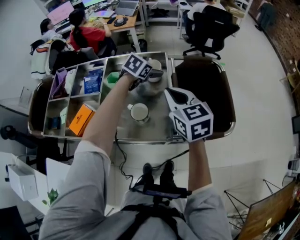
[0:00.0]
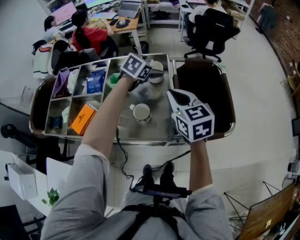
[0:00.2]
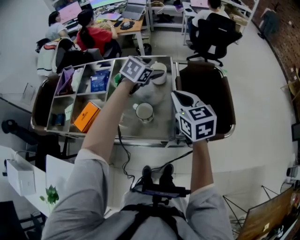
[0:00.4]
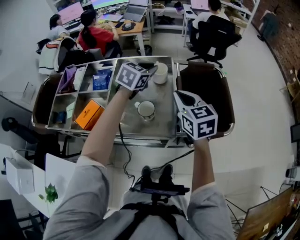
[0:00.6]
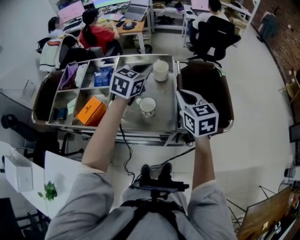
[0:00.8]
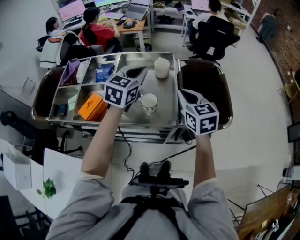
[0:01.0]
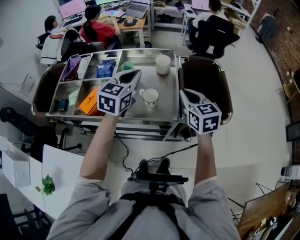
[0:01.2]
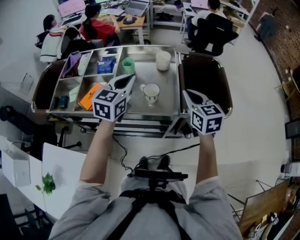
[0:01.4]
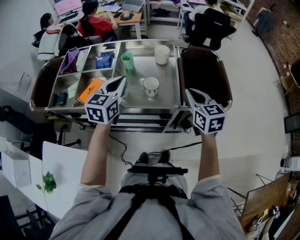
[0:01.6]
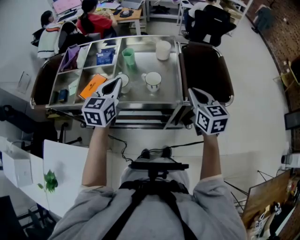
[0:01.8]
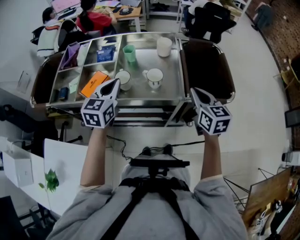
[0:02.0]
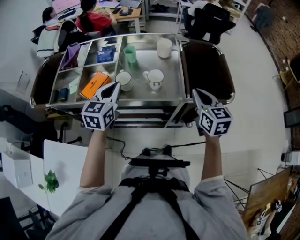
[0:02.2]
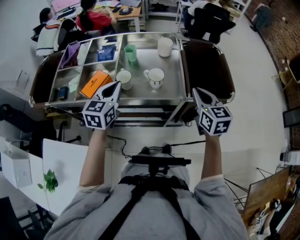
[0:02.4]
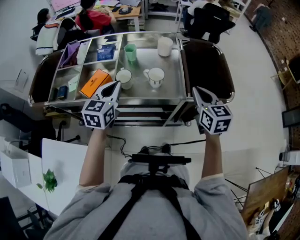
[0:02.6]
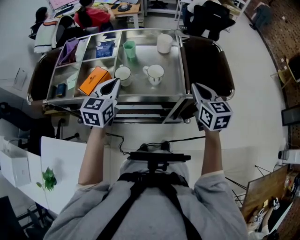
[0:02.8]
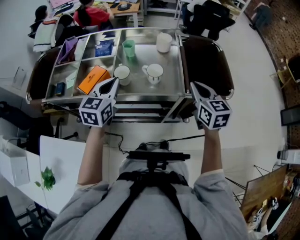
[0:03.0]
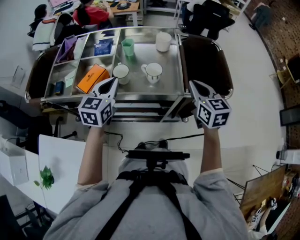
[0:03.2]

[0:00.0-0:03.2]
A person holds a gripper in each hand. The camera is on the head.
0:00.0 to 0:01.6: The left gripper moves backward, to the left and upward, about 35 cm, changes its angle by approximately 40 degrees, and closes up. Meanwhile the right gripper moves backward, some 10 cm.
0:01.6 to 0:03.2: The left gripper ends up roughly 10 cm from where it was.

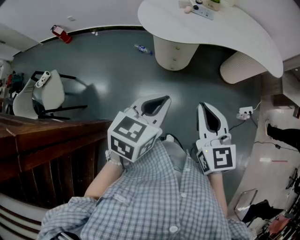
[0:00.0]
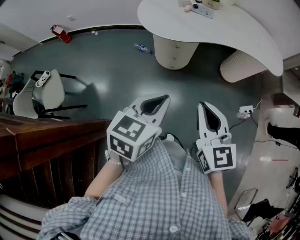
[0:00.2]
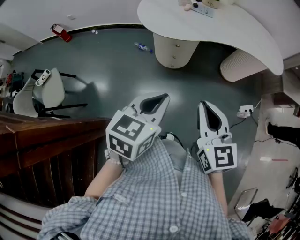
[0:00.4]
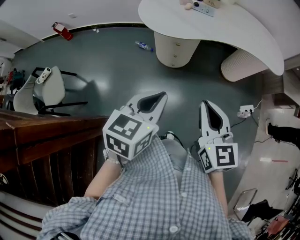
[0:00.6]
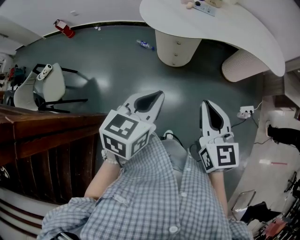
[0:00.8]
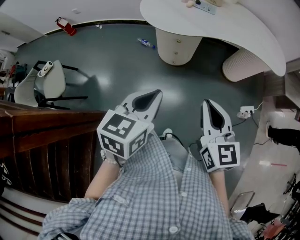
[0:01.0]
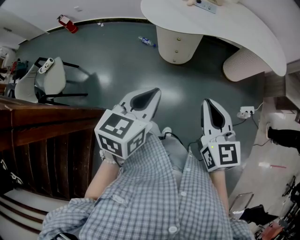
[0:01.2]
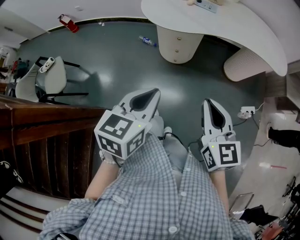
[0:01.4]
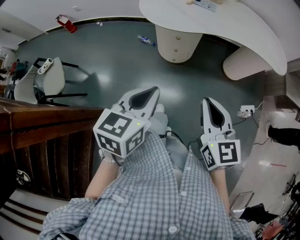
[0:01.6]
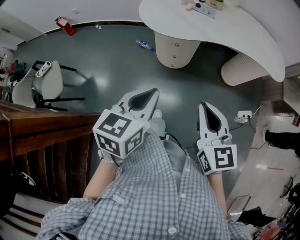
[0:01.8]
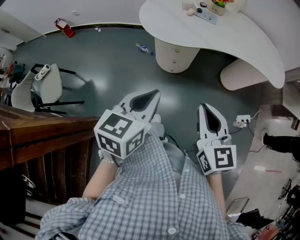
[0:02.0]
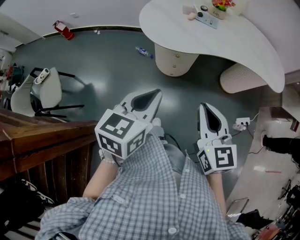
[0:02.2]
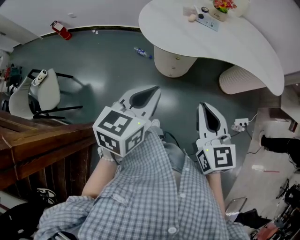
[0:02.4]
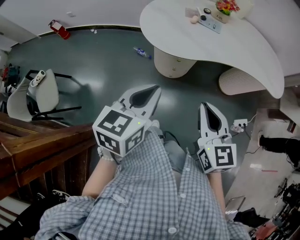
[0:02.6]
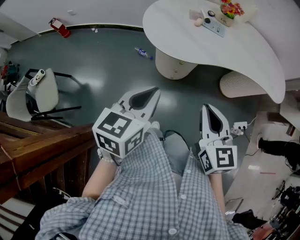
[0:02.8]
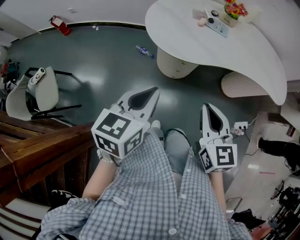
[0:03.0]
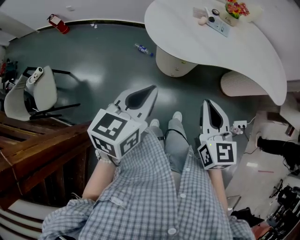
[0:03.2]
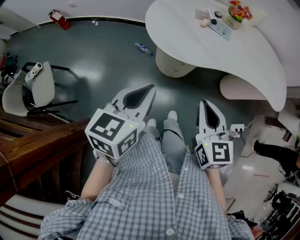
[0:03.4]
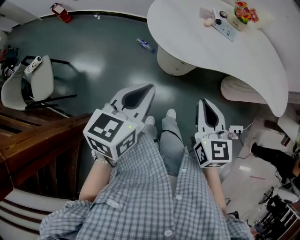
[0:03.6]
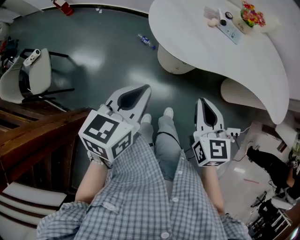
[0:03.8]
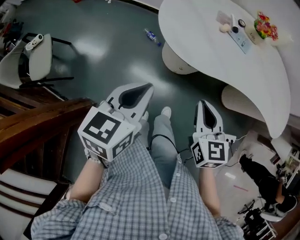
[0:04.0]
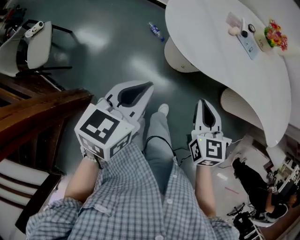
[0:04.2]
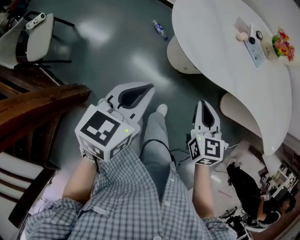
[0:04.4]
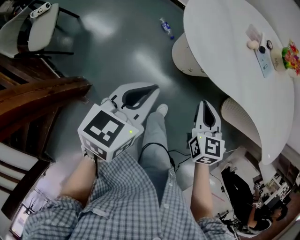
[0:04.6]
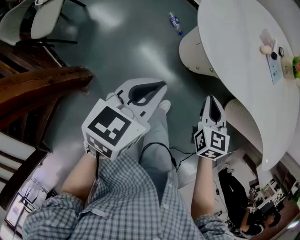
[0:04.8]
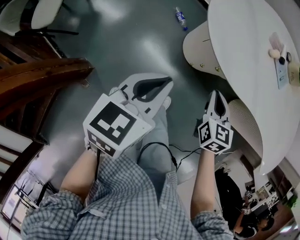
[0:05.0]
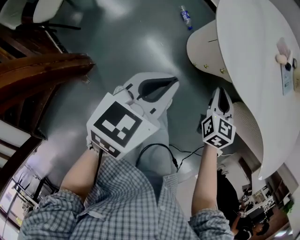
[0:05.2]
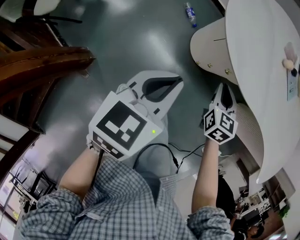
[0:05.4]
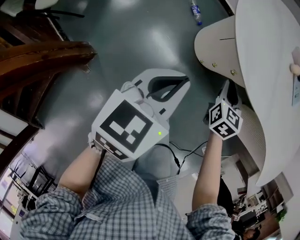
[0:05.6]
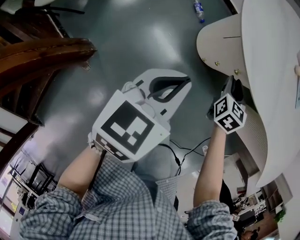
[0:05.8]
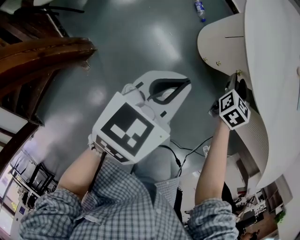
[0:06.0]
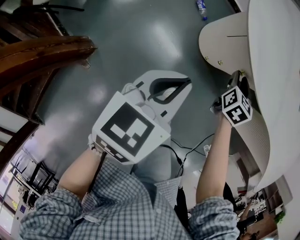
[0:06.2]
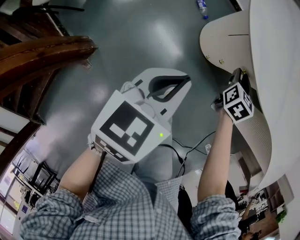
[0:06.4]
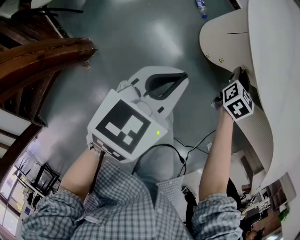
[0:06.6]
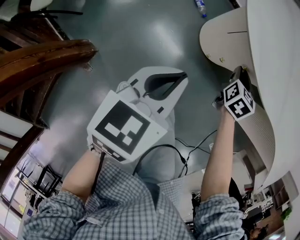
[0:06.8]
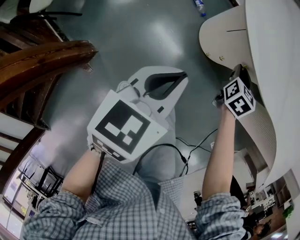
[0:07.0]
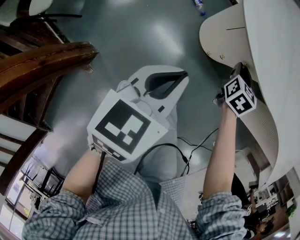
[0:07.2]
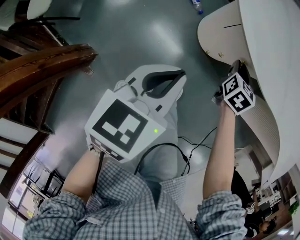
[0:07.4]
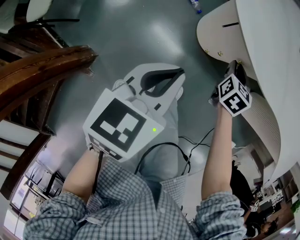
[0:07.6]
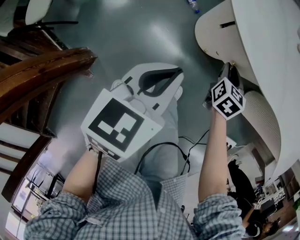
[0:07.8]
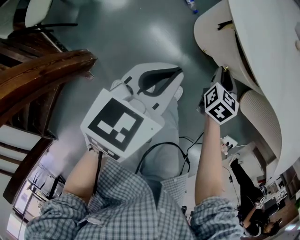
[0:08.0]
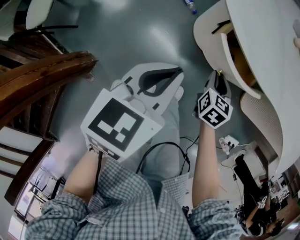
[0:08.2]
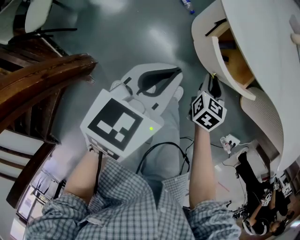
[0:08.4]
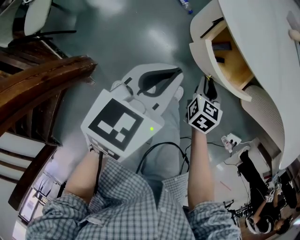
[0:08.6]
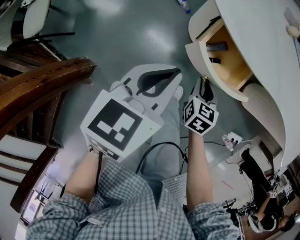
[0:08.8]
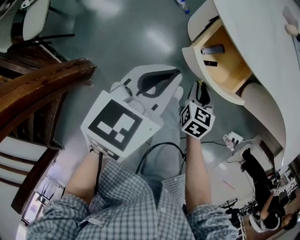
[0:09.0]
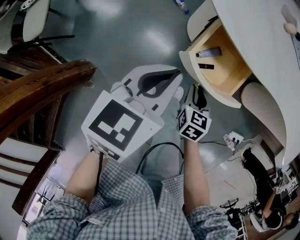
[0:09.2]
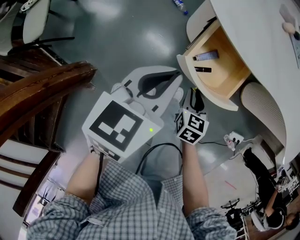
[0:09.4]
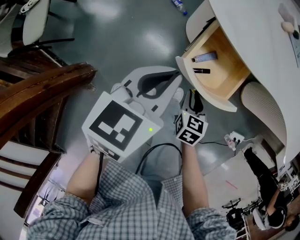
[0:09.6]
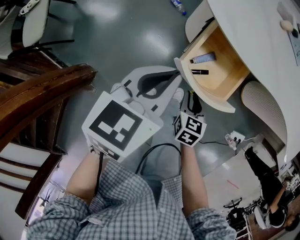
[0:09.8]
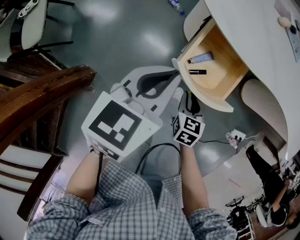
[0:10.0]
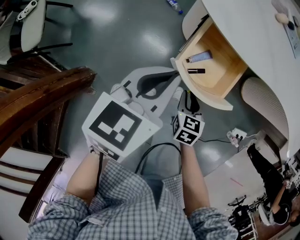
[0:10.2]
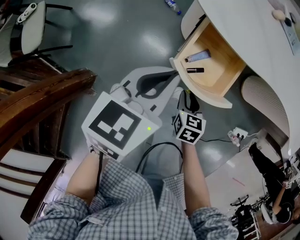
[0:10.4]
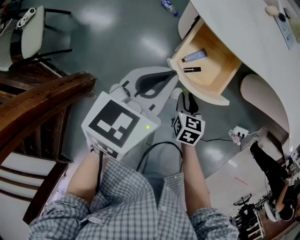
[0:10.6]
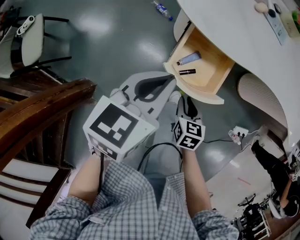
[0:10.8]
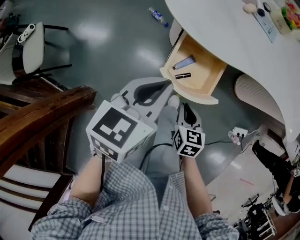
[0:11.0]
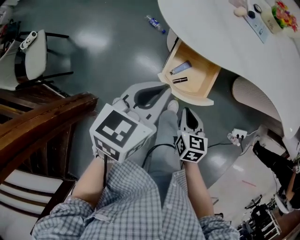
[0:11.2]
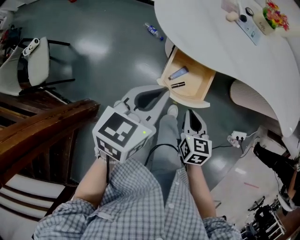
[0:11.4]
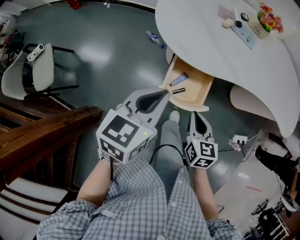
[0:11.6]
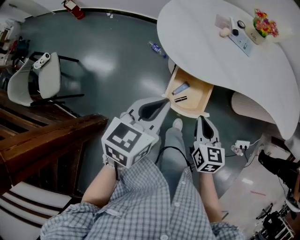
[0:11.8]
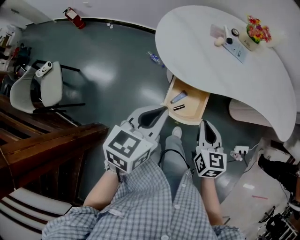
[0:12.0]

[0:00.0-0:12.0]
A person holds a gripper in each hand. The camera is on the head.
0:00.0 to 0:01.6: The right gripper moves to the right, some 5 cm.
0:01.6 to 0:03.0: Both grippers travel together forward and to the left, approximately 20 cm.
0:03.0 to 0:04.4: The left gripper travels downward and forward by some 10 cm; the right gripper goes some 20 cm downward and forward.
0:04.4 to 0:06.0: The left gripper moves downward, about 15 cm; the right gripper goes some 25 cm downward and forward, and opens.
0:06.0 to 0:07.6: The grippers make only small movements.
0:07.6 to 0:09.0: The right gripper shifts roughly 15 cm backward.
0:09.0 to 0:10.4: The right gripper travels backward by roughly 5 cm.
0:10.4 to 0:12.0: The right gripper heads upward, covering roughly 25 cm, and changes its angle by approximately 20 degrees, while the left gripper heads upward, covering some 15 cm.

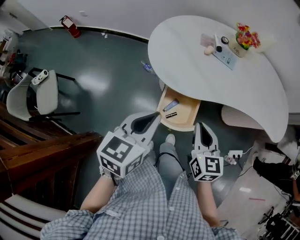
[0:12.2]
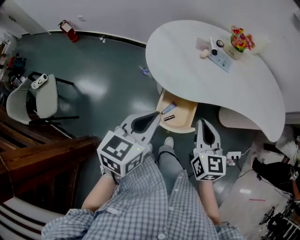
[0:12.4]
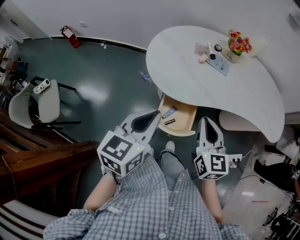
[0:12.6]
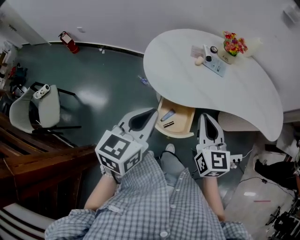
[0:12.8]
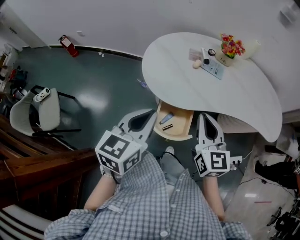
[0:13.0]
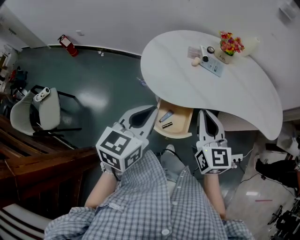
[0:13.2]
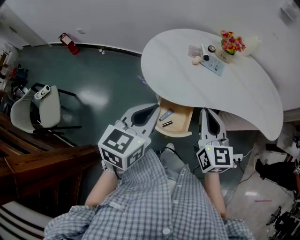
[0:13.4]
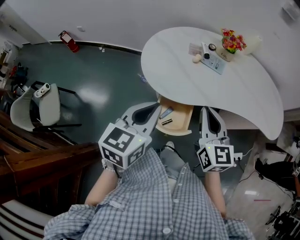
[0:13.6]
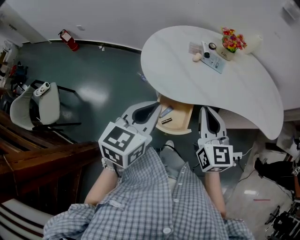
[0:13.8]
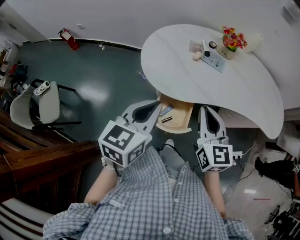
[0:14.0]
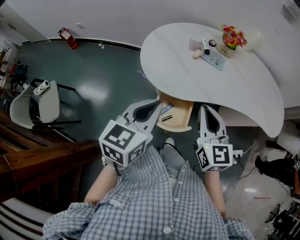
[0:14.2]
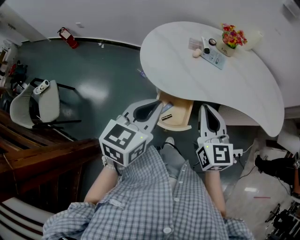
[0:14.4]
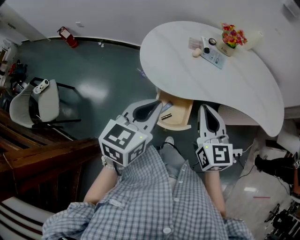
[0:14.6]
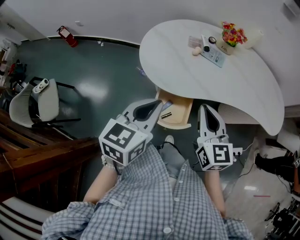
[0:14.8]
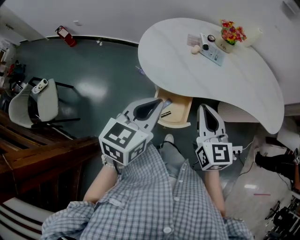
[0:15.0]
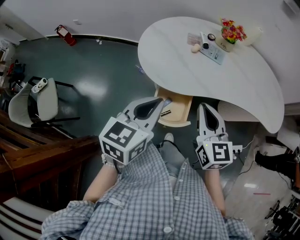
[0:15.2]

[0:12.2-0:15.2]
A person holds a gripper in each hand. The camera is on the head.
0:12.2 to 0:13.8: The right gripper goes roughly 10 cm upward and forward. The left gripper shifts roughly 5 cm upward.
0:13.8 to 0:15.2: The grippers move only a little.

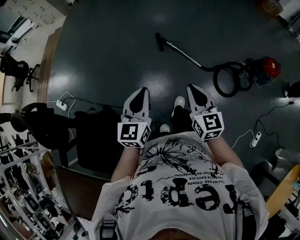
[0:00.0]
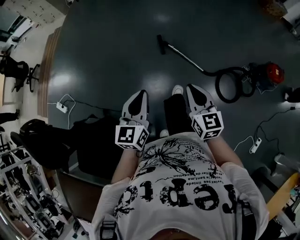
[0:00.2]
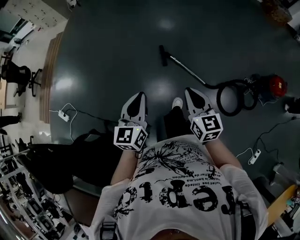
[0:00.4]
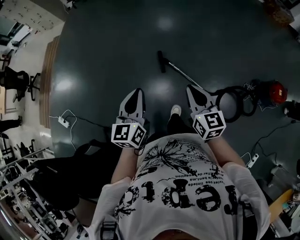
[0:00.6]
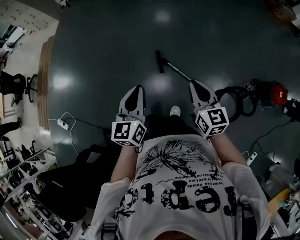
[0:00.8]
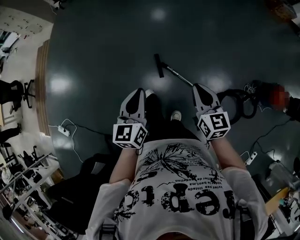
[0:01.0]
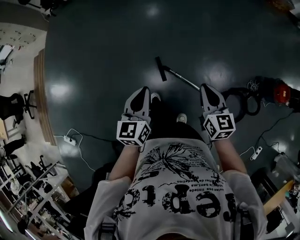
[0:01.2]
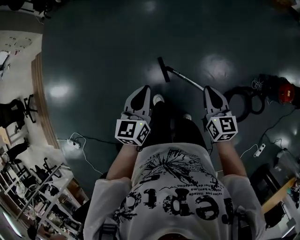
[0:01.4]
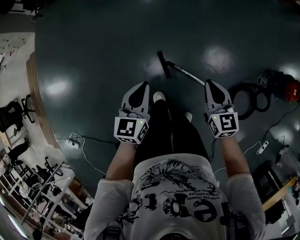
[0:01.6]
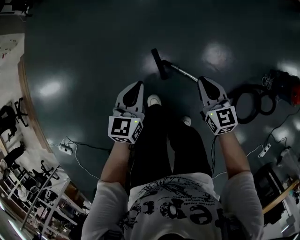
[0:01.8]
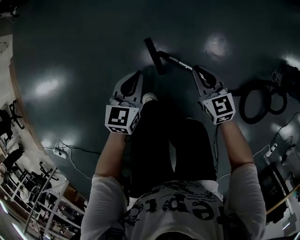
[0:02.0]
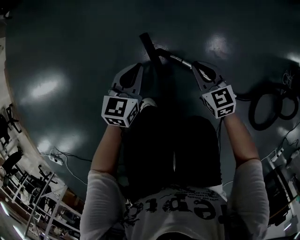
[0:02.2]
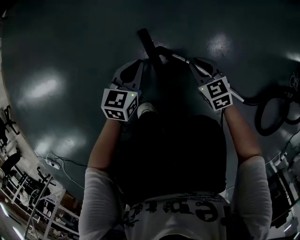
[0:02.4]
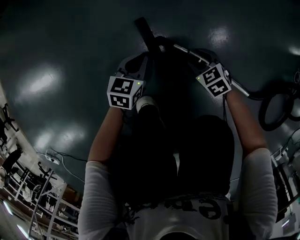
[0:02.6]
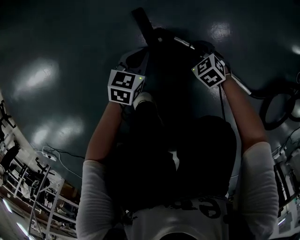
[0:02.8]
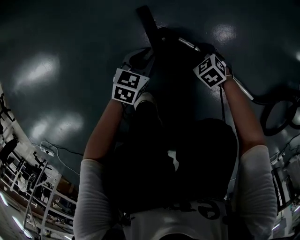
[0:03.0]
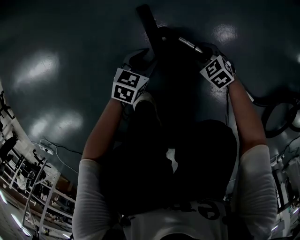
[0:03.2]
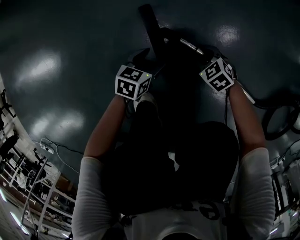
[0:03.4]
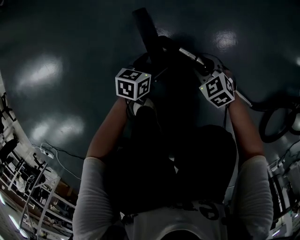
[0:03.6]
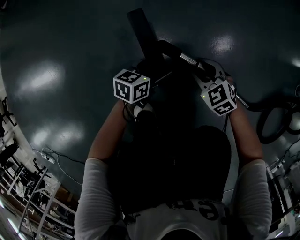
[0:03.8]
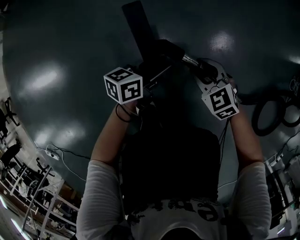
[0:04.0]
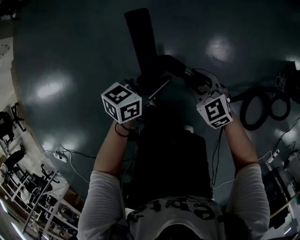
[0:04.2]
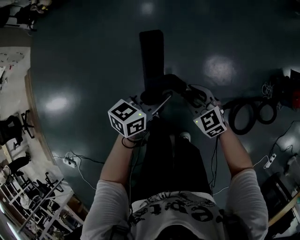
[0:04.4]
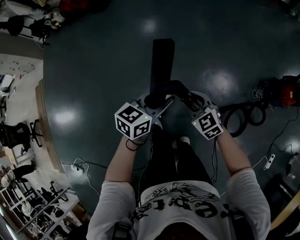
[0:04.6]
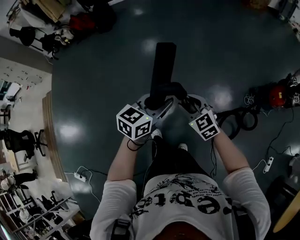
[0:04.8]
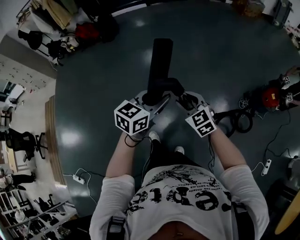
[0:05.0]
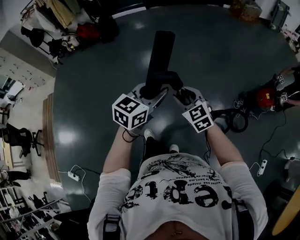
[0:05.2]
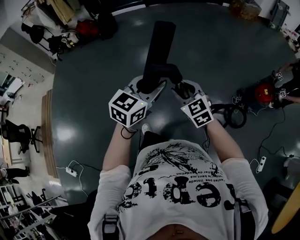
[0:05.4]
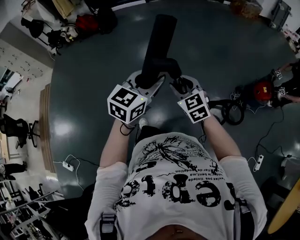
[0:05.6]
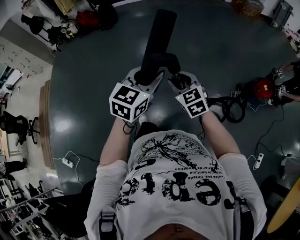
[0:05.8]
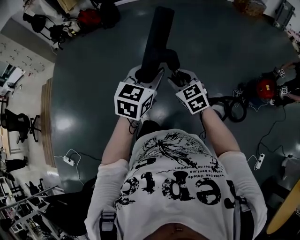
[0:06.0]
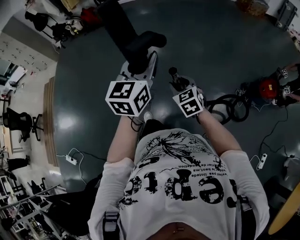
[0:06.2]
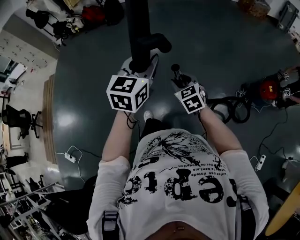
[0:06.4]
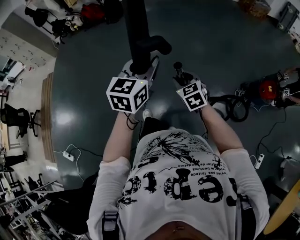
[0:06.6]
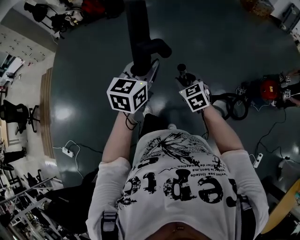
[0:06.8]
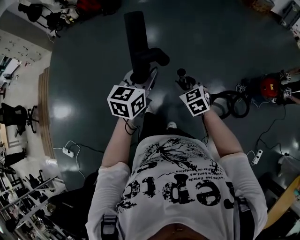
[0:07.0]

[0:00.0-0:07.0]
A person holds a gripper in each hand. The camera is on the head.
0:00.0 to 0:01.4: The pair of grippers is taken forward, approximately 60 cm.
0:01.4 to 0:02.8: Both grippers move downward, approximately 80 cm. The right gripper tilts its fingers some 40 degrees downward, and opens. Meanwhile the left gripper changes its angle by about 30 degrees.
0:02.8 to 0:04.2: Both grippers move upward, approximately 35 cm. The right gripper changes its angle by about 20 degrees. Meanwhile the left gripper rotates some 30 degrees, and opens, then closes once more.
0:04.2 to 0:05.6: The two grippers go some 60 cm upward. The left gripper rotates about 40 degrees. Meanwhile the right gripper swivels about 20 degrees.
0:05.6 to 0:07.0: The left gripper is displaced to the left and downward by about 10 cm, and changes its angle by some 20 degrees, while the right gripper is displaced downward by roughly 10 cm.
